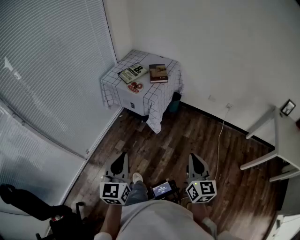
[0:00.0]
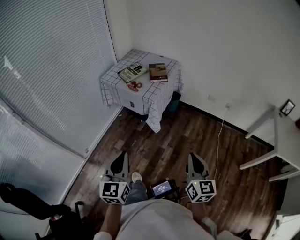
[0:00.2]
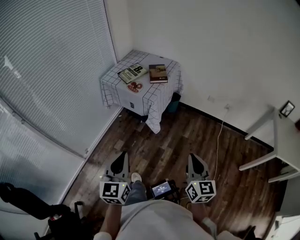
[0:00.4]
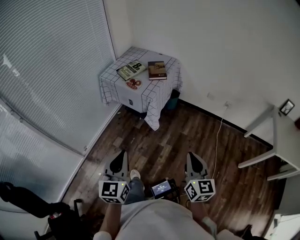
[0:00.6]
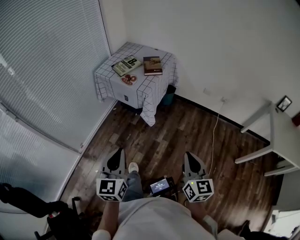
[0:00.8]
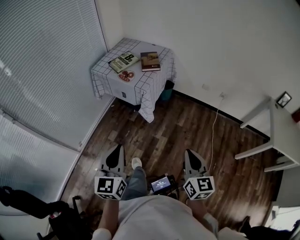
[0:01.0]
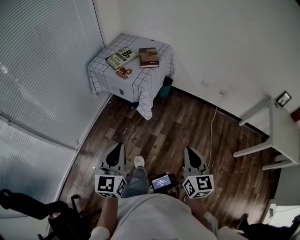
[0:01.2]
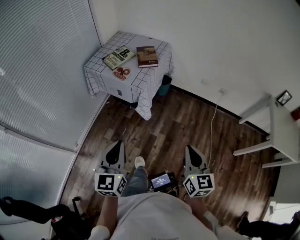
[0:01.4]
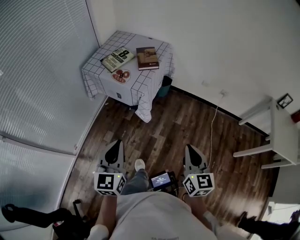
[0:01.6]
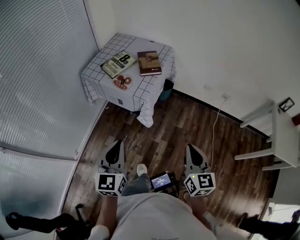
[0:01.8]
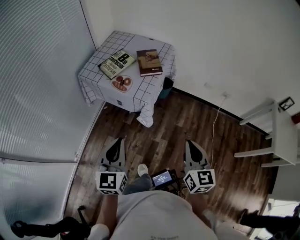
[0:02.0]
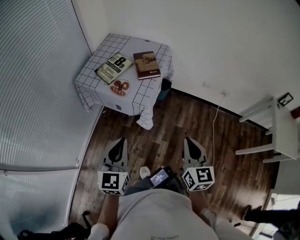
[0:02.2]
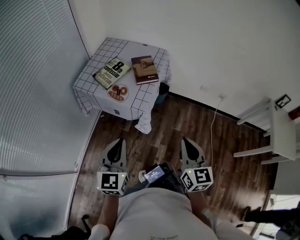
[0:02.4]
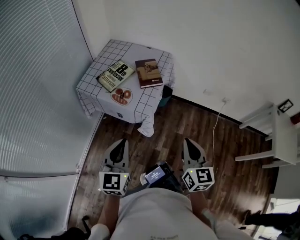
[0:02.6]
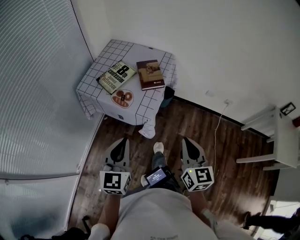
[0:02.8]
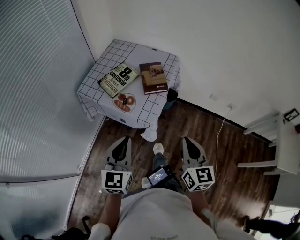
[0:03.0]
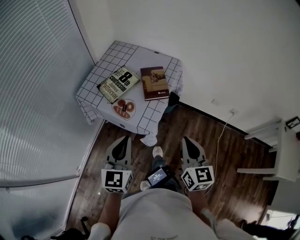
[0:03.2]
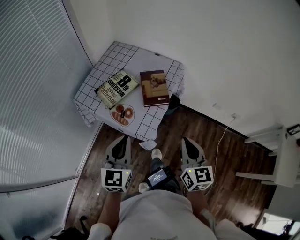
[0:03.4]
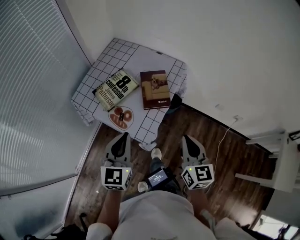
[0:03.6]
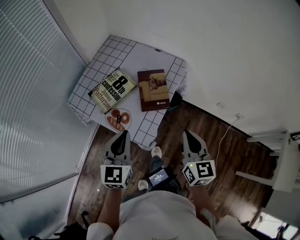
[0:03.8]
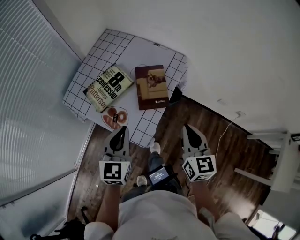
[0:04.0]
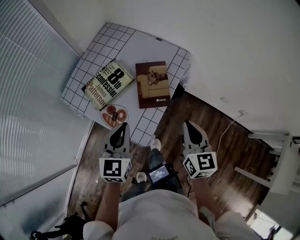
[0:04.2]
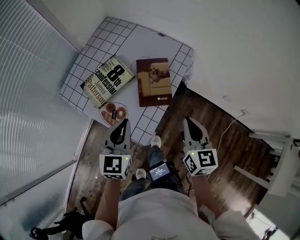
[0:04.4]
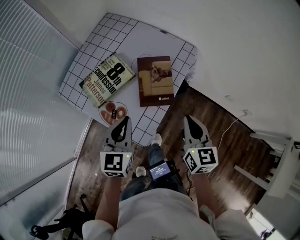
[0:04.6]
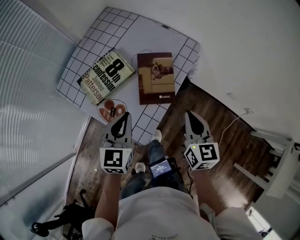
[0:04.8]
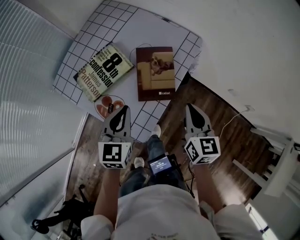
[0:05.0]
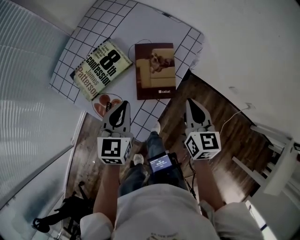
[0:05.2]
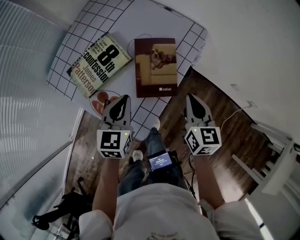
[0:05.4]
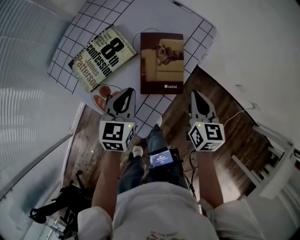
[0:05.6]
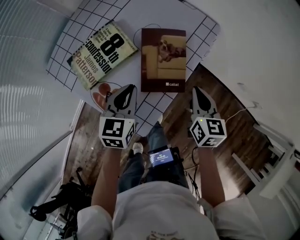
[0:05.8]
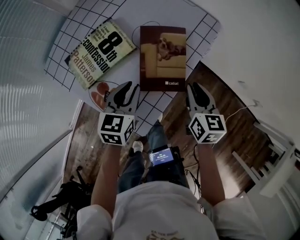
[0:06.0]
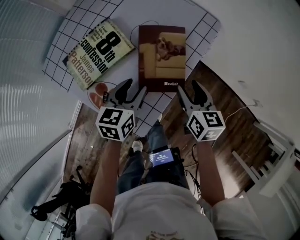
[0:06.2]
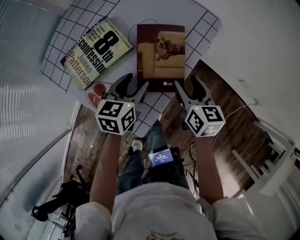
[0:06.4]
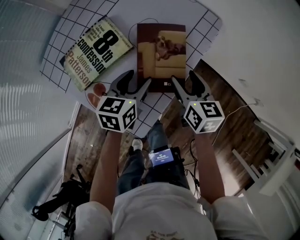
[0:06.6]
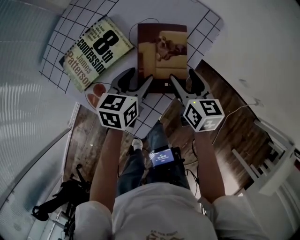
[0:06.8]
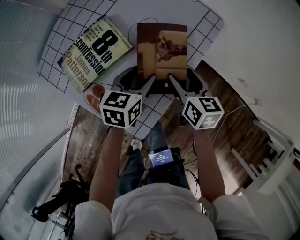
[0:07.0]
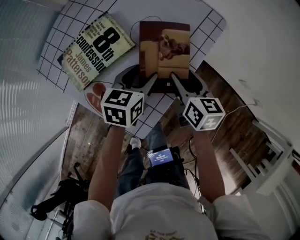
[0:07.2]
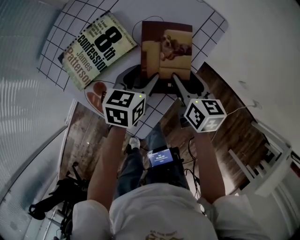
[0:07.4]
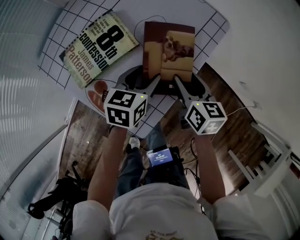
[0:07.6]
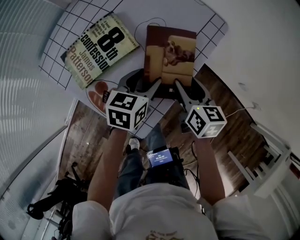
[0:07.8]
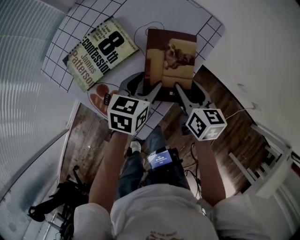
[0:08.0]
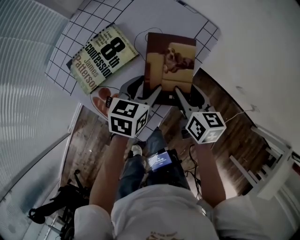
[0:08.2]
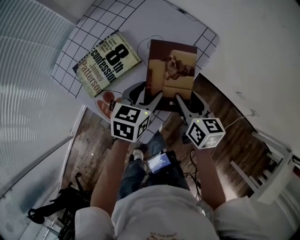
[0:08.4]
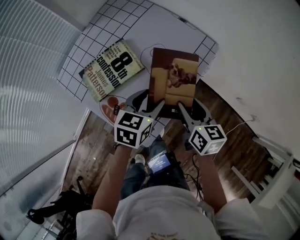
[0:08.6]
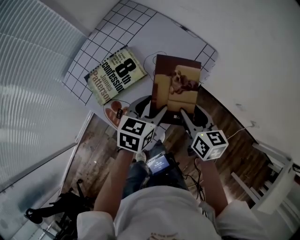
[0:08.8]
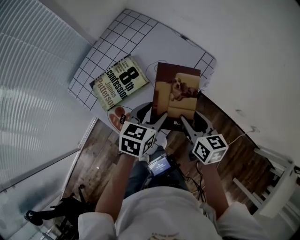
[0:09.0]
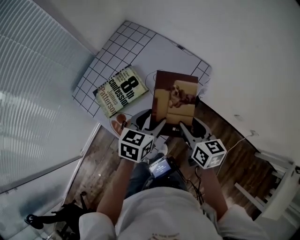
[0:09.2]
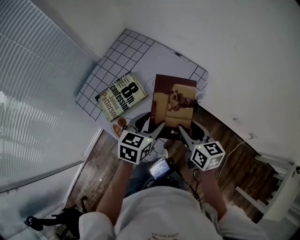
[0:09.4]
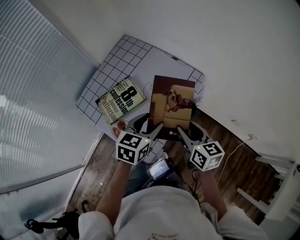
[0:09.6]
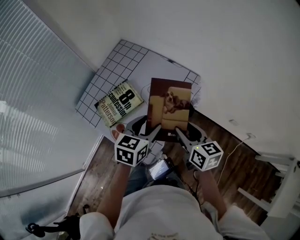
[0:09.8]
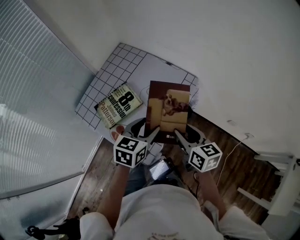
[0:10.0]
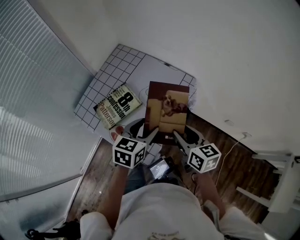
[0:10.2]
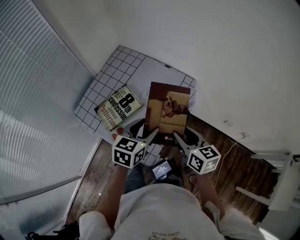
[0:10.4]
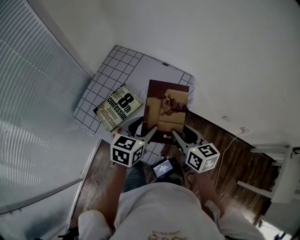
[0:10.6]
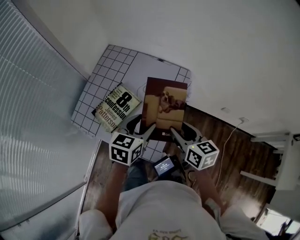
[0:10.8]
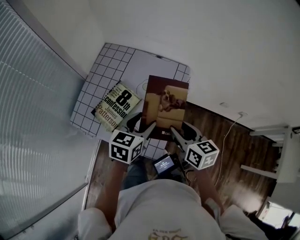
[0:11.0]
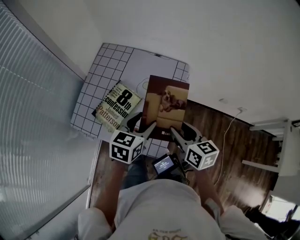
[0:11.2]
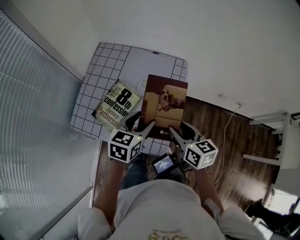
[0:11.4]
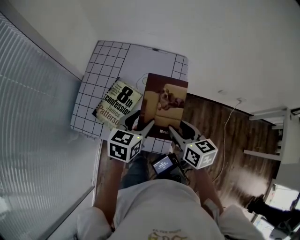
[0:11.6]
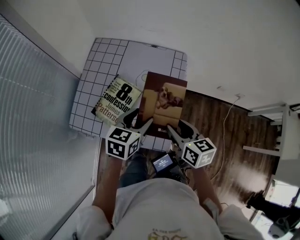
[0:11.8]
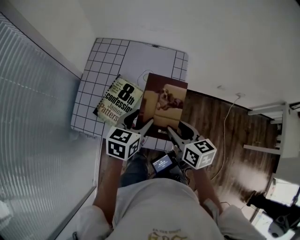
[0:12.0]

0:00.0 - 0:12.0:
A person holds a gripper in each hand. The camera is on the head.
0:00.0 - 0:01.6: The grippers both shift forward by about 10 cm.
0:01.6 - 0:03.0: The two grippers go roughly 25 cm forward.
0:03.0 - 0:04.4: Both grippers move forward, some 25 cm.
0:04.4 - 0:06.0: Both grippers move downward and forward, about 15 cm.
0:06.0 - 0:07.6: The left gripper shifts by some 5 cm, and opens up, while the right gripper shifts by about 5 cm, and opens its fingers.
0:07.6 - 0:09.0: The grippers both shift upward by about 10 cm.
0:09.0 - 0:10.4: Both grippers travel together upward, some 10 cm.
0:10.4 - 0:12.0: The right gripper goes roughly 10 cm to the left and backward. Meanwhile the left gripper shifts approximately 10 cm to the left.

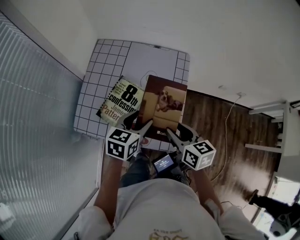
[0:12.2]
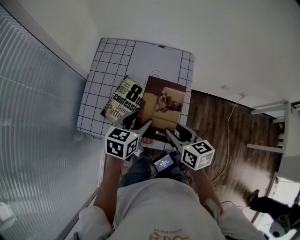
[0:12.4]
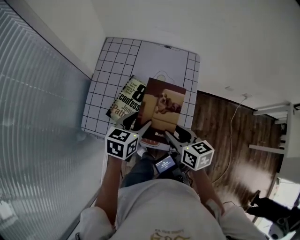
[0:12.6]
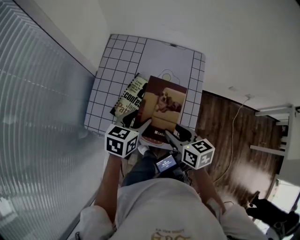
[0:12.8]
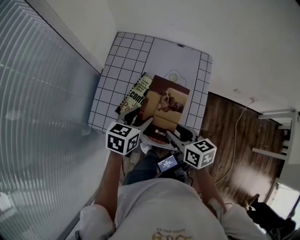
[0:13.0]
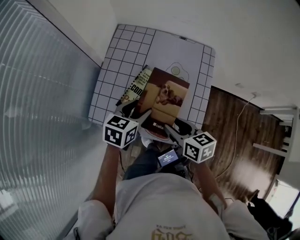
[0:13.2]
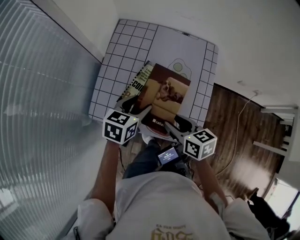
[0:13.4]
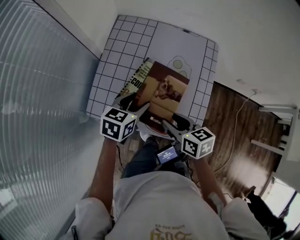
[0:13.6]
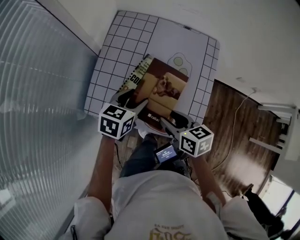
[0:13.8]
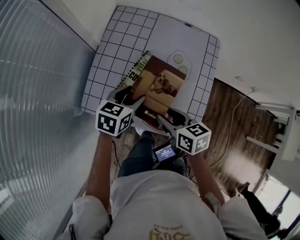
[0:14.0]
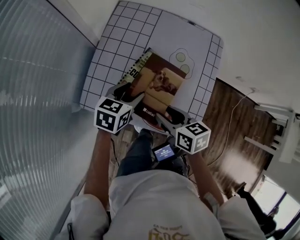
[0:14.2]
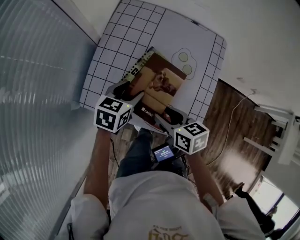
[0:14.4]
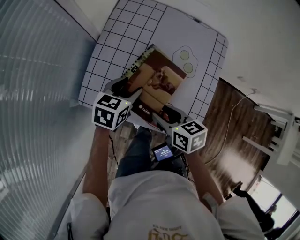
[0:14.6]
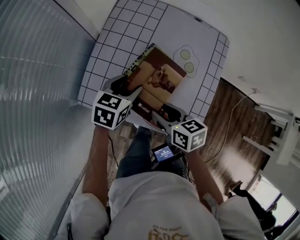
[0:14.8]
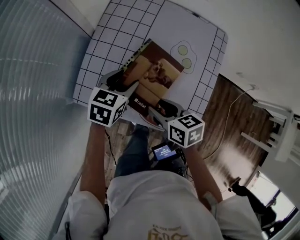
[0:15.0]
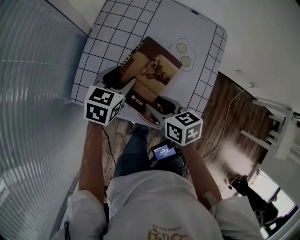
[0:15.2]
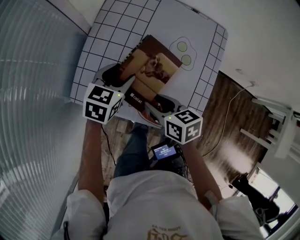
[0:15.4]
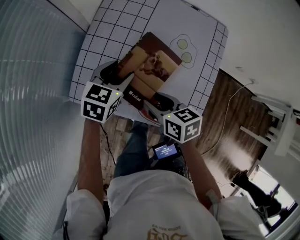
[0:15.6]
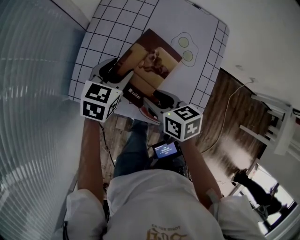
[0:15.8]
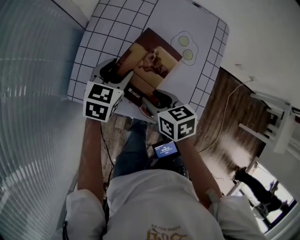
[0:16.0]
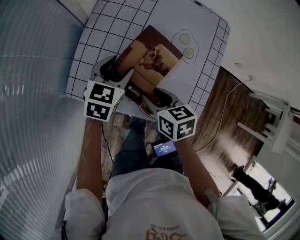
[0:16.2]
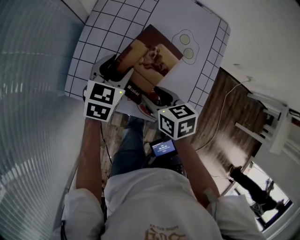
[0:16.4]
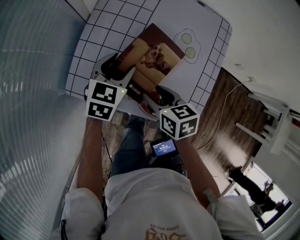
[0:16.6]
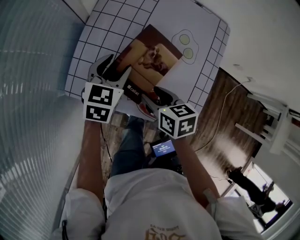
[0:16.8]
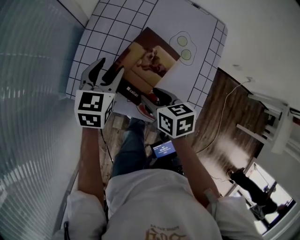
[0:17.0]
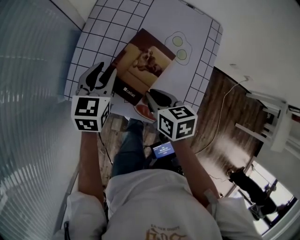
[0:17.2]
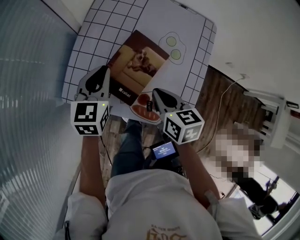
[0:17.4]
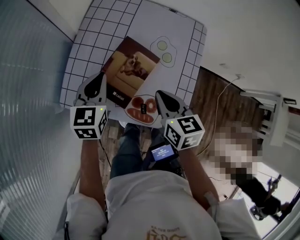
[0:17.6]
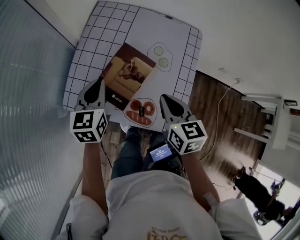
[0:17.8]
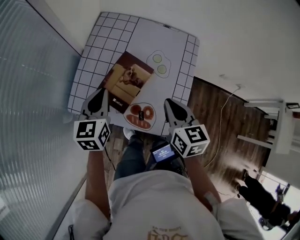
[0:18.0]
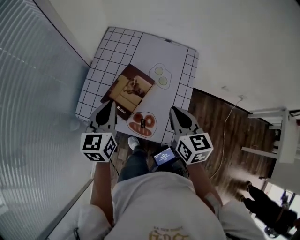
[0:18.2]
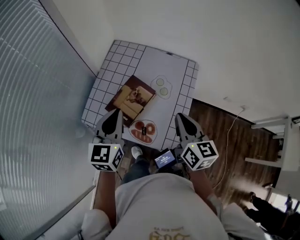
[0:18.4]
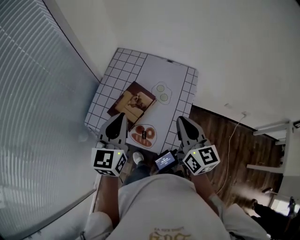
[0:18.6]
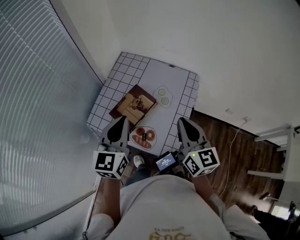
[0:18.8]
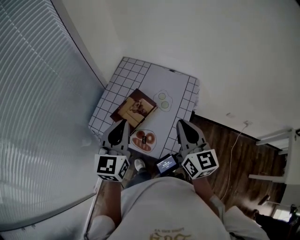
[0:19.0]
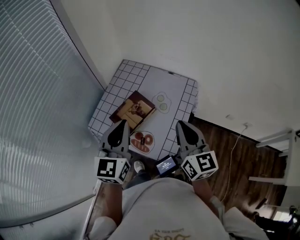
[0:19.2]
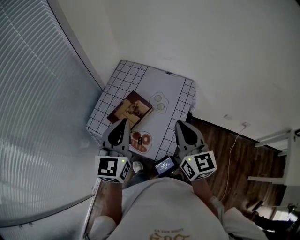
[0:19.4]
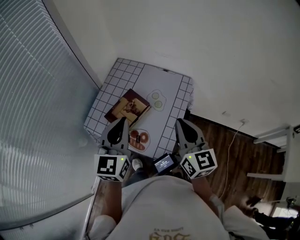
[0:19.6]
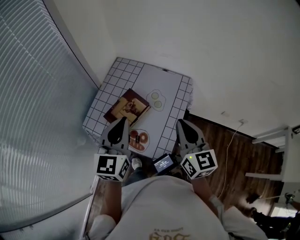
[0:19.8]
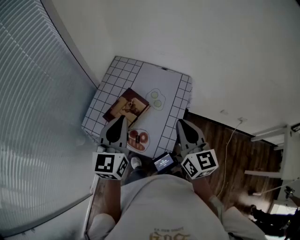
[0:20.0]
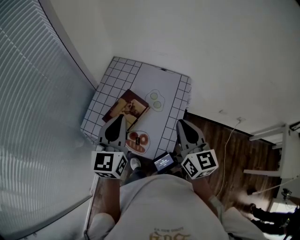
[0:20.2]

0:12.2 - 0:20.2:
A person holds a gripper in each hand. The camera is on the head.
0:12.2 - 0:13.8: Both grippers move to the left and downward, approximately 15 cm.
0:13.8 - 0:15.4: The left gripper ends up roughly 5 cm from where it was; the right gripper shifts by approximately 5 cm.
0:15.4 - 0:17.0: The grippers make only small movements.
0:17.0 - 0:18.6: The right gripper heads upward and to the right, covering roughly 30 cm, tips its fingers upward by roughly 40 degrees, and closes, while the left gripper travels upward, backward and to the right by approximately 30 cm, rotates roughly 30 degrees, and closes its fingers.

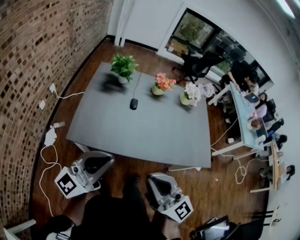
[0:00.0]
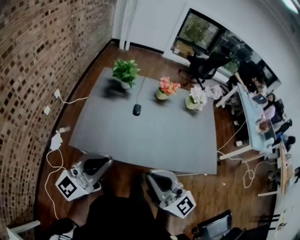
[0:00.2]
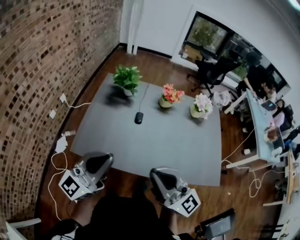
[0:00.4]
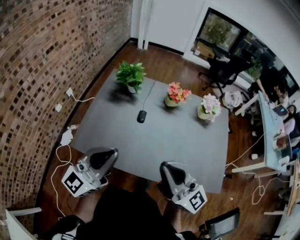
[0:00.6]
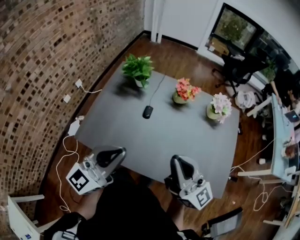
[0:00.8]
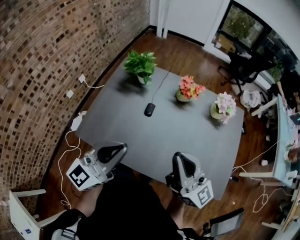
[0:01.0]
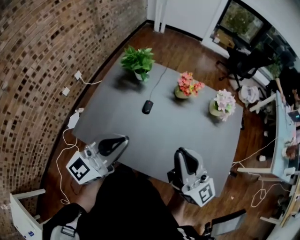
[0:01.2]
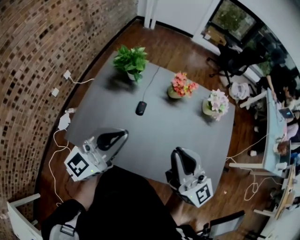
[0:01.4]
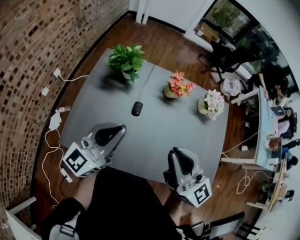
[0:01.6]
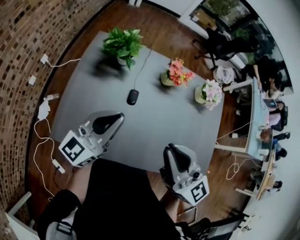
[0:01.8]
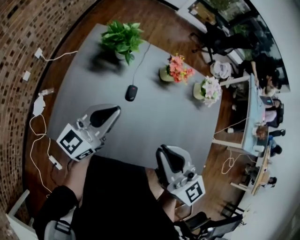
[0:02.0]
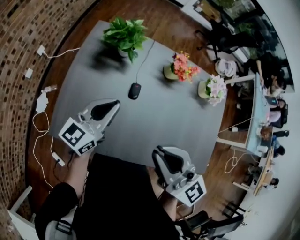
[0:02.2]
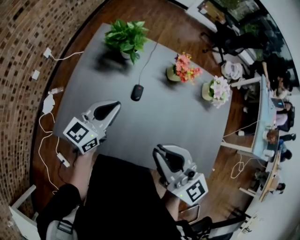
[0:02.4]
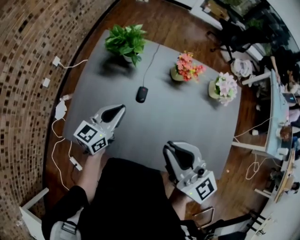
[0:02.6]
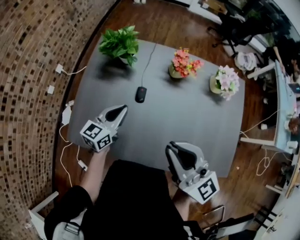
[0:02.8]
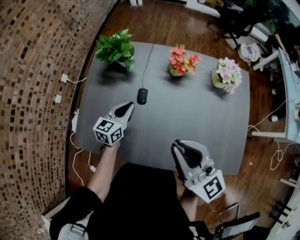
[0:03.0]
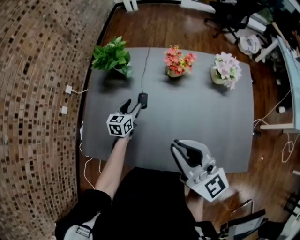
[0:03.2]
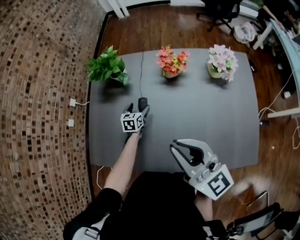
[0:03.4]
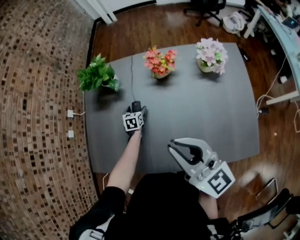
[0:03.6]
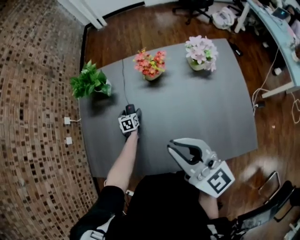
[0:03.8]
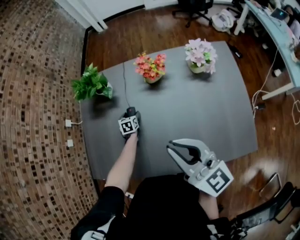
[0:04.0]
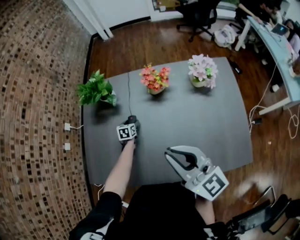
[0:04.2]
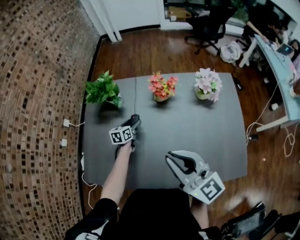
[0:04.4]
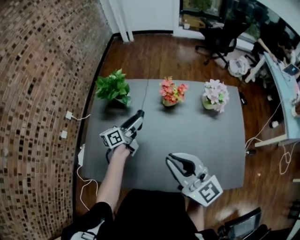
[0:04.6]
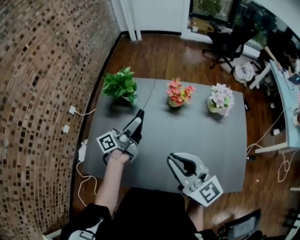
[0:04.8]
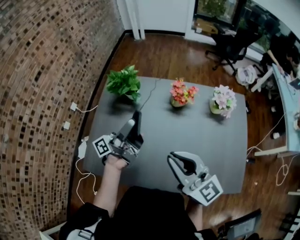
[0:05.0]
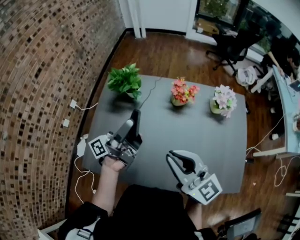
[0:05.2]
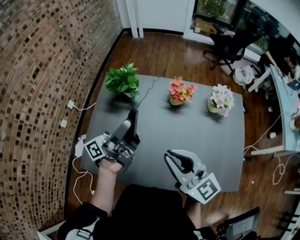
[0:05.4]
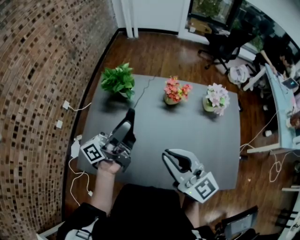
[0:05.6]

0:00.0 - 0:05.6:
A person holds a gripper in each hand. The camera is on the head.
0:00.0 - 0:01.4: Both grippers move forward and to the right, approximately 30 cm.
0:01.4 - 0:02.8: The right gripper moves some 15 cm to the left and comes back. Meanwhile the left gripper travels downward and forward by some 25 cm, and swivels approximately 30 degrees.
0:02.8 - 0:04.2: The left gripper travels downward and forward by approximately 30 cm, angles its fingers downward, by some 40 degrees, and opens up. Meanwhile the right gripper travels to the right by some 10 cm.
0:04.2 - 0:05.6: The left gripper heads upward, covering some 50 cm, and tips its fingers upward by some 80 degrees, while the right gripper is displaced to the left by roughly 10 cm.
